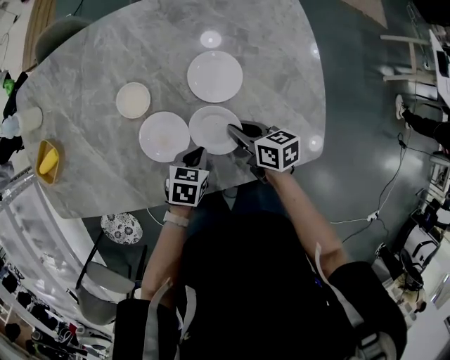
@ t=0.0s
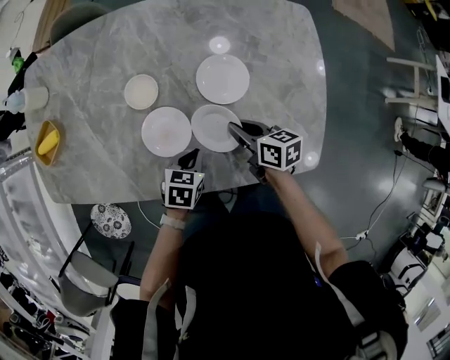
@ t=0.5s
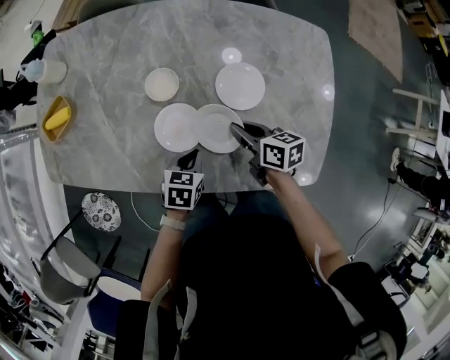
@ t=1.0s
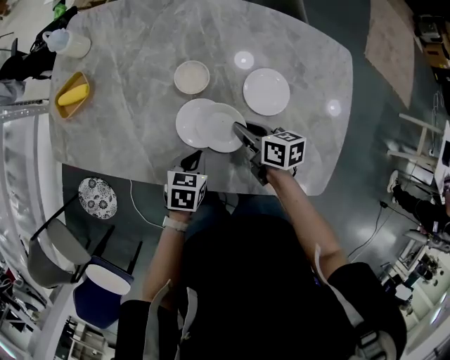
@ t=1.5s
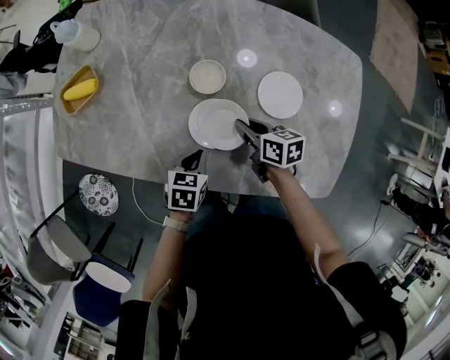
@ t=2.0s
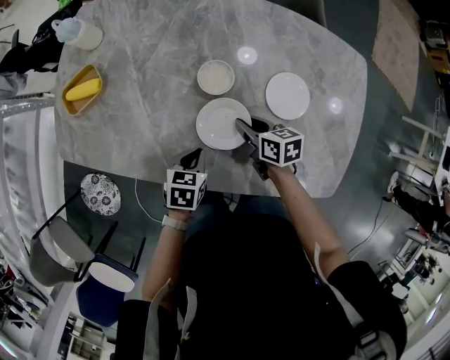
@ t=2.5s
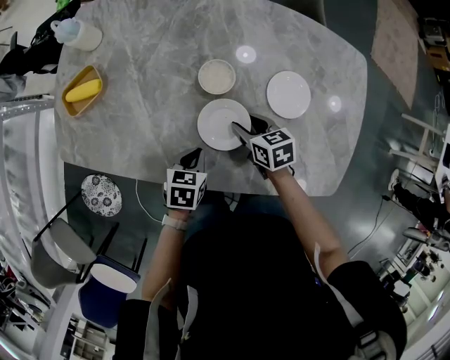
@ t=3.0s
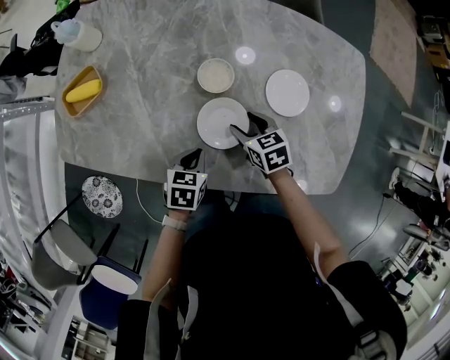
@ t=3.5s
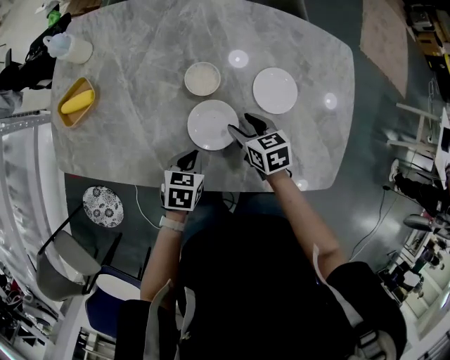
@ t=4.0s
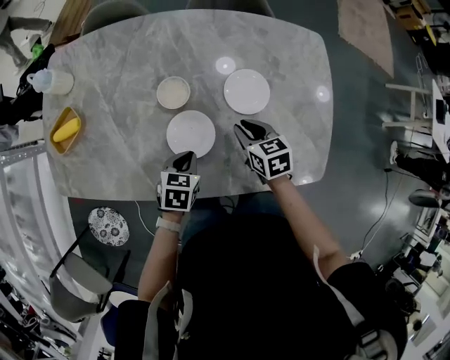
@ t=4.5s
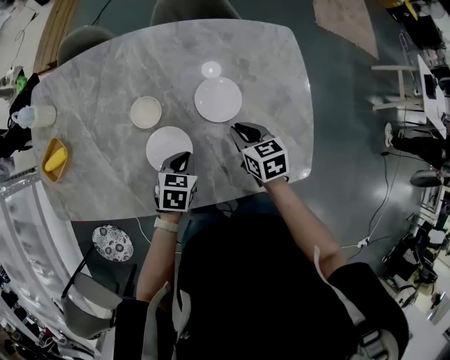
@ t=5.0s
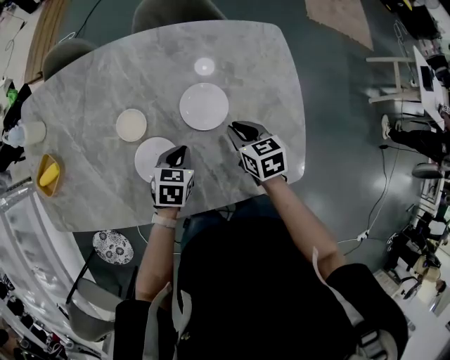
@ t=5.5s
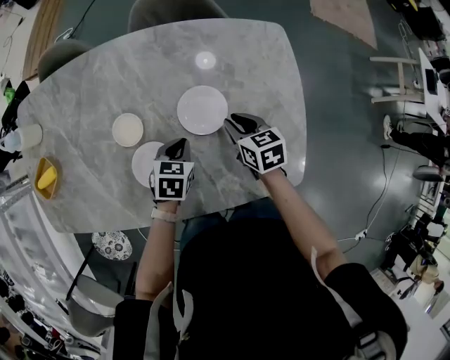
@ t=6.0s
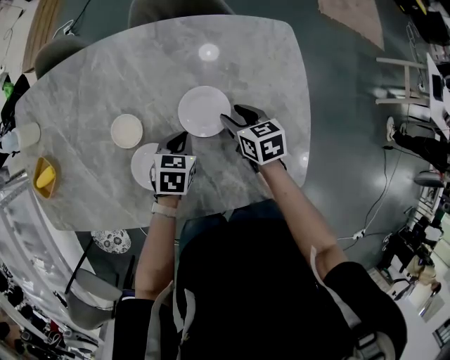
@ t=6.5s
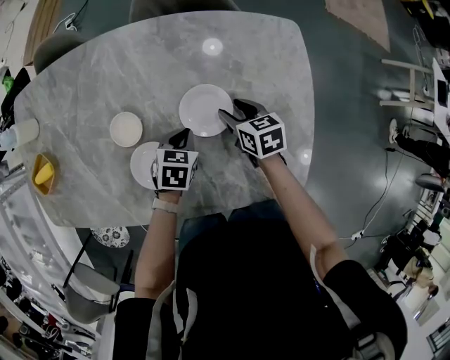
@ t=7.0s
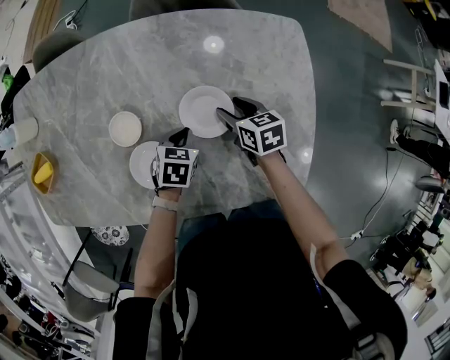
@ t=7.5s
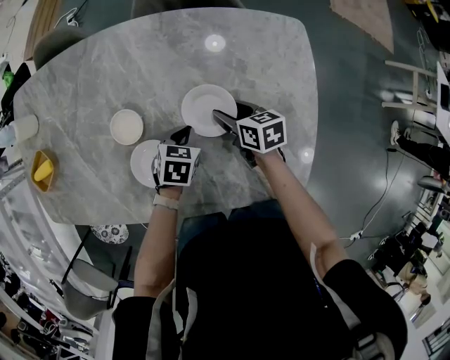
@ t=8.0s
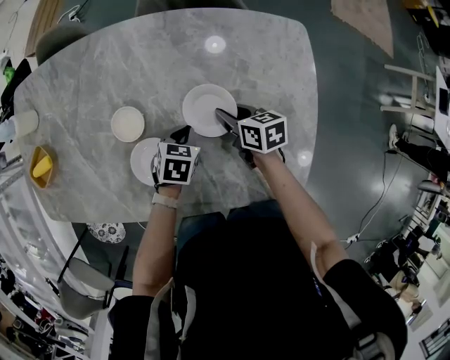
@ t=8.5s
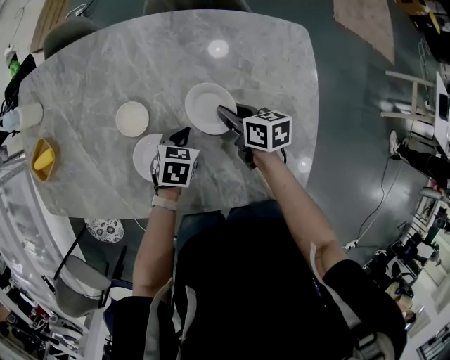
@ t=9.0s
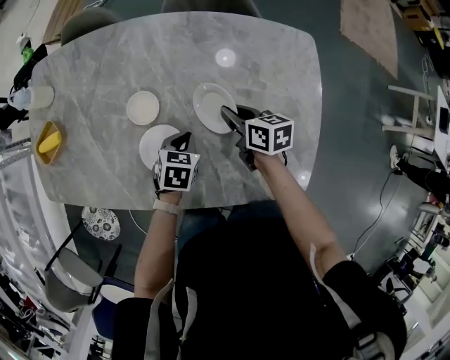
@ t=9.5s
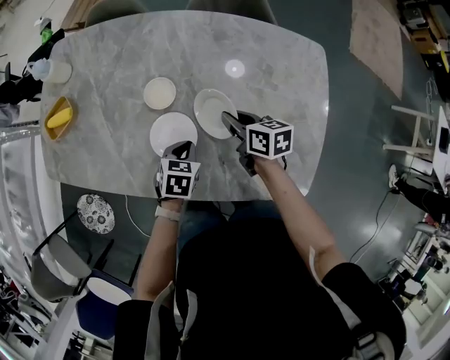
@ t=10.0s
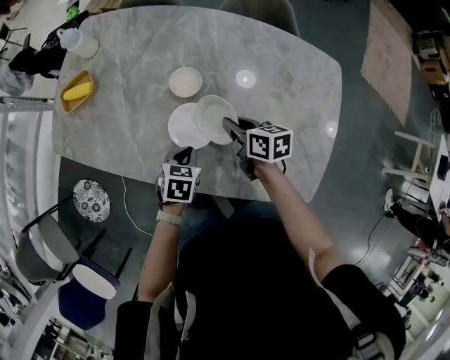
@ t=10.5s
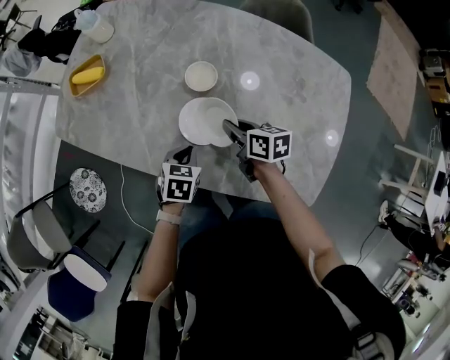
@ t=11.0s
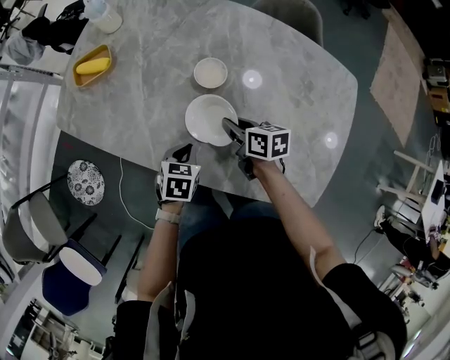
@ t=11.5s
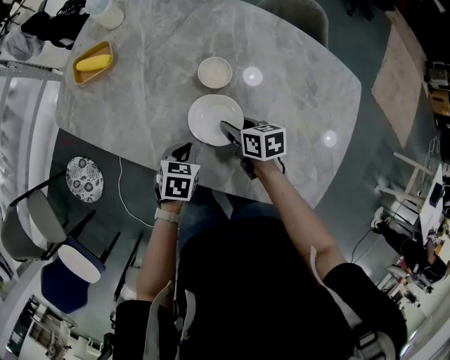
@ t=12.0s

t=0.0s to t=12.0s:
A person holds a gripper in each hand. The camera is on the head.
t=0.0s to t=2.0s: The right gripper heads to the left and forward, covering about 15 cm. The left gripper travels to the left by roughly 15 cm, and turns by roughly 20 degrees.
t=2.0s to t=4.0s: The right gripper changes its angle by some 20 degrees, and opens up.
t=4.0s to t=6.0s: The left gripper shifts approximately 20 cm to the right and forward. Meanwhile the right gripper shifts approximately 20 cm to the right, and closes its fingers.
t=6.0s to t=8.0s: The left gripper moves some 5 cm. Meanwhile the right gripper heads downward, covering roughly 5 cm, and opens its fingers.
t=8.0s to t=10.0s: The left gripper moves backward and to the left, some 15 cm. The right gripper moves to the left and upward, approximately 10 cm, and closes its fingers.
t=10.0s to t=12.0s: Both grippers travel together to the left, about 15 cm. The right gripper turns by some 20 degrees, and opens.

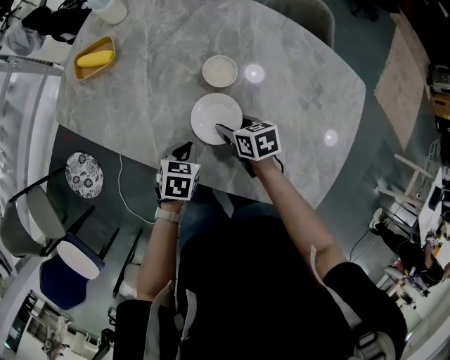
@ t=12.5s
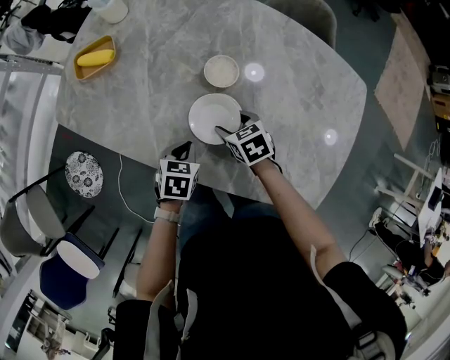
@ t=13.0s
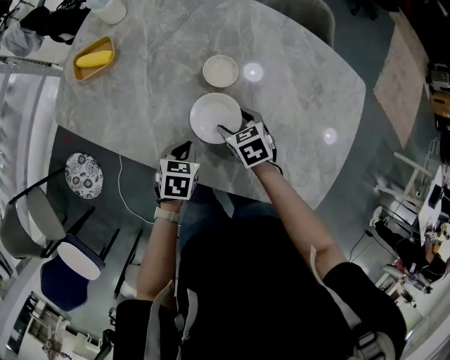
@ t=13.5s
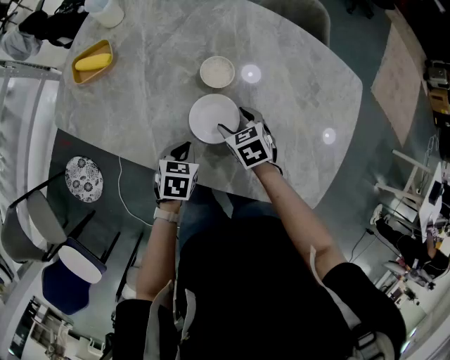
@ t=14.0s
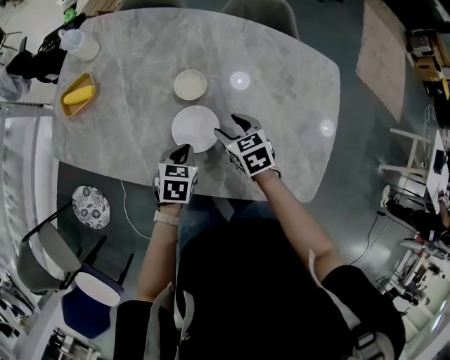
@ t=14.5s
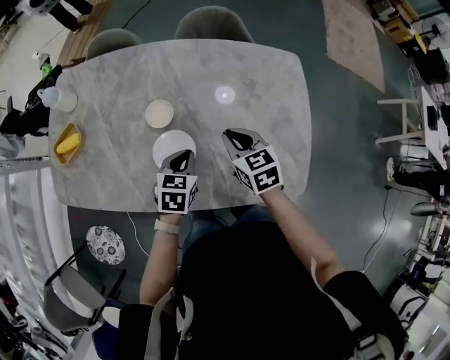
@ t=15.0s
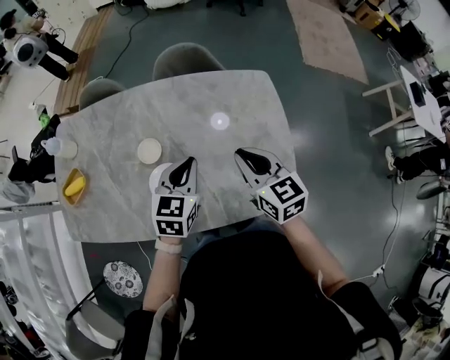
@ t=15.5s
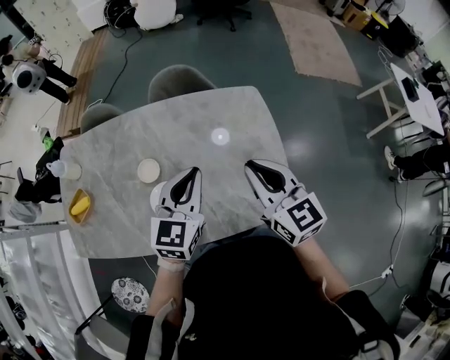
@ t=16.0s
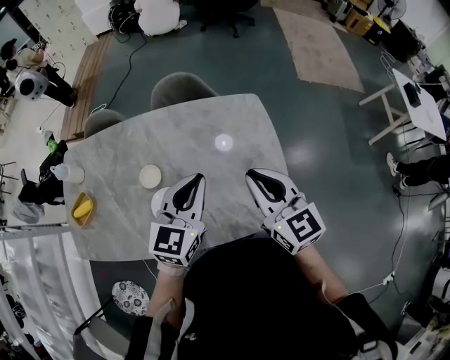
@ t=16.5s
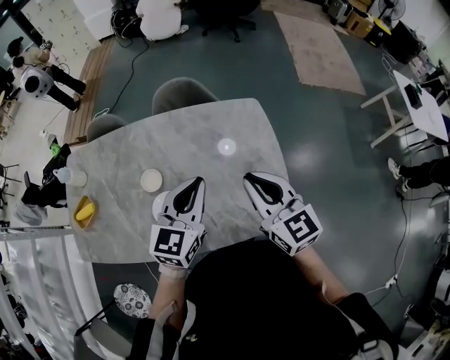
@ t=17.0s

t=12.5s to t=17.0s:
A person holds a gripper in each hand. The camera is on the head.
t=12.5s to t=14.5s: The right gripper moves upward and to the right, approximately 10 cm, and swivels approximately 20 degrees; the left gripper shifts by roughly 5 cm.
t=14.5s to t=17.0s: Both grippers travel together upward and to the right, about 40 cm. The right gripper tips its fingers upward by about 40 degrees, and closes up. Meanwhile the left gripper points its fingers approximately 40 degrees further upward.

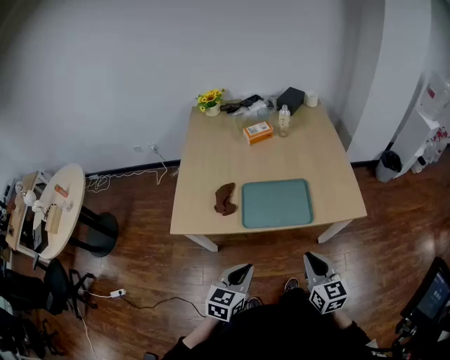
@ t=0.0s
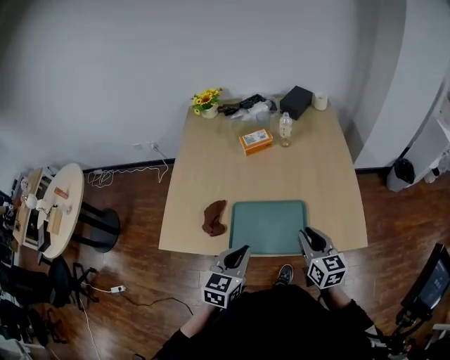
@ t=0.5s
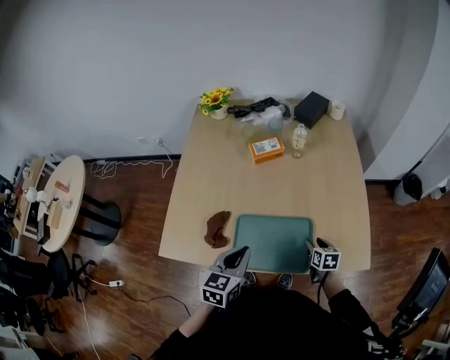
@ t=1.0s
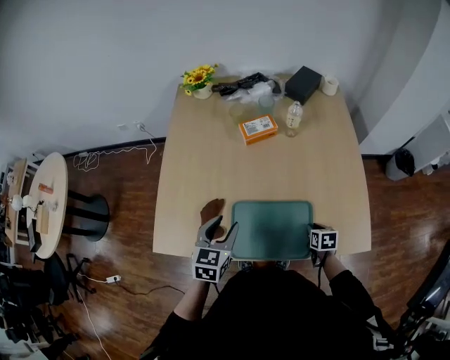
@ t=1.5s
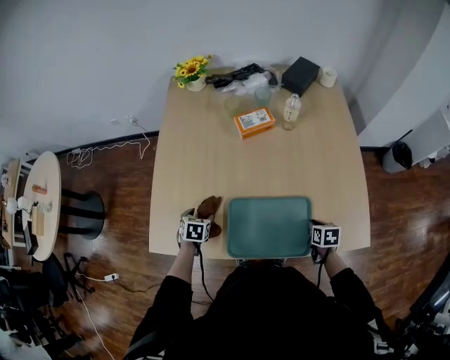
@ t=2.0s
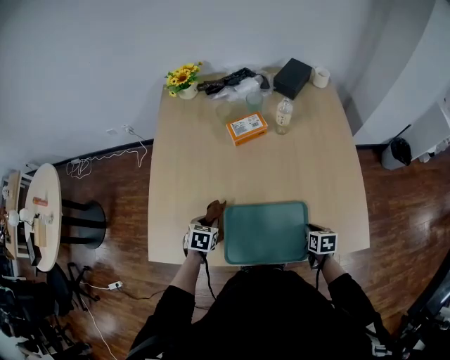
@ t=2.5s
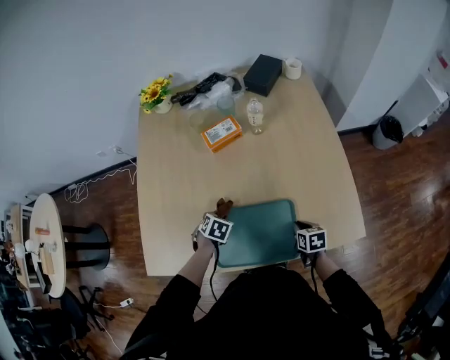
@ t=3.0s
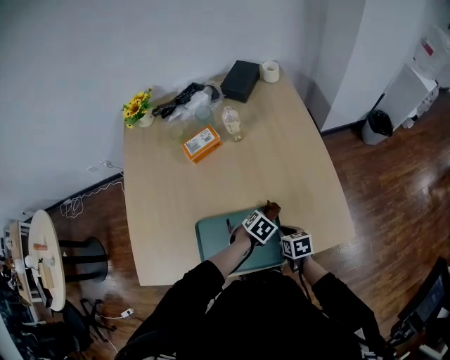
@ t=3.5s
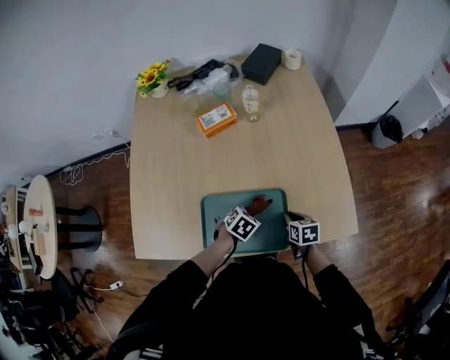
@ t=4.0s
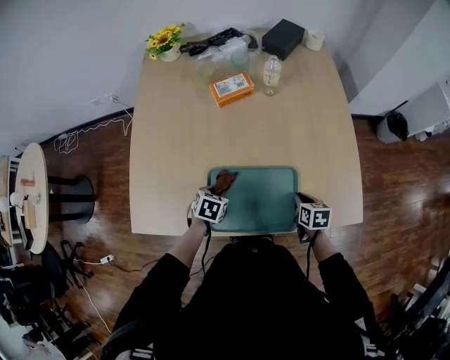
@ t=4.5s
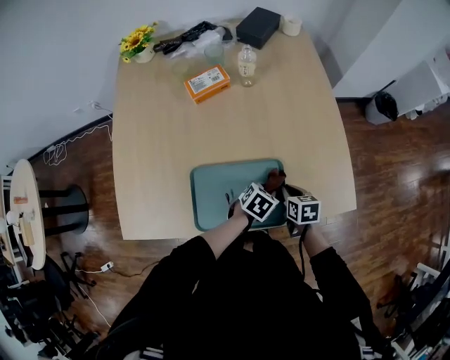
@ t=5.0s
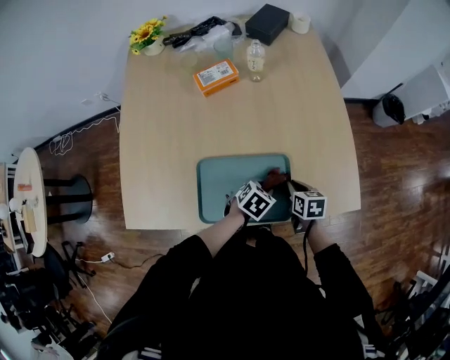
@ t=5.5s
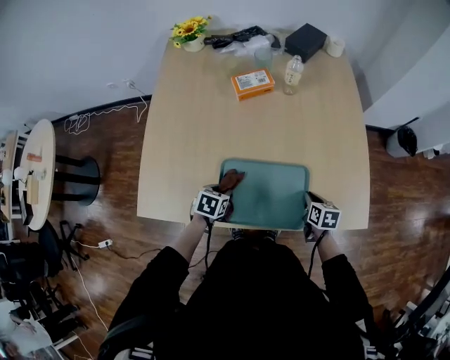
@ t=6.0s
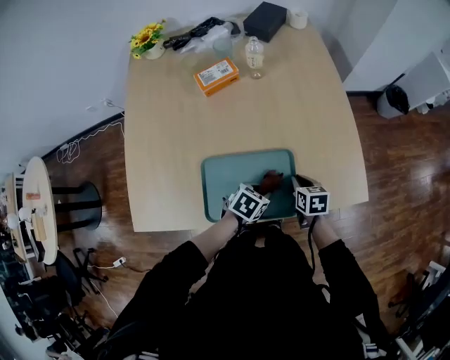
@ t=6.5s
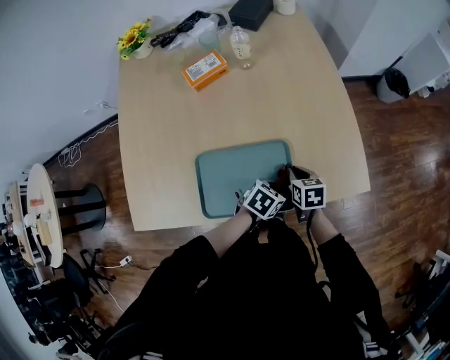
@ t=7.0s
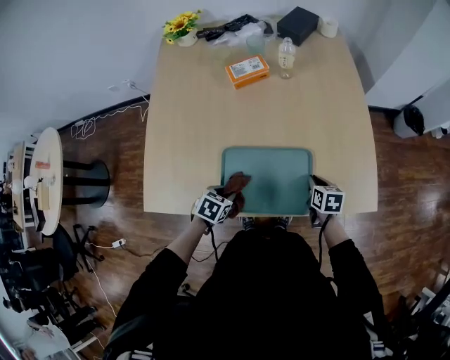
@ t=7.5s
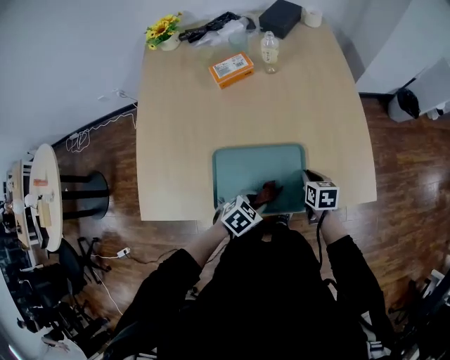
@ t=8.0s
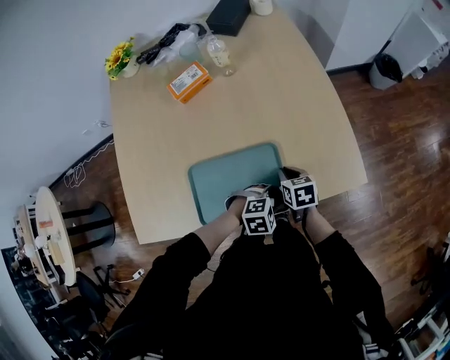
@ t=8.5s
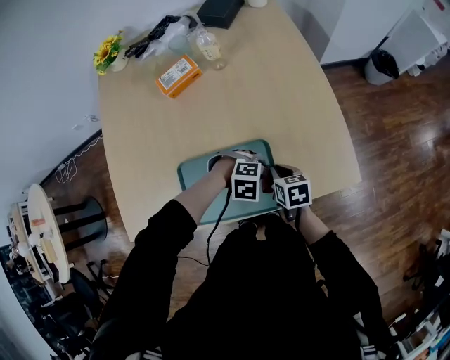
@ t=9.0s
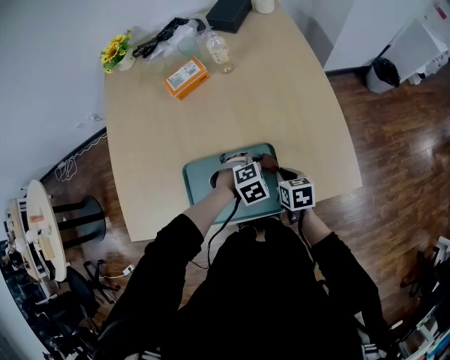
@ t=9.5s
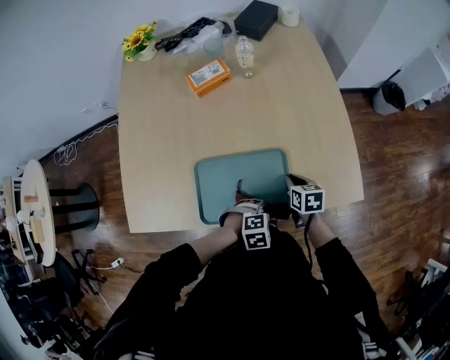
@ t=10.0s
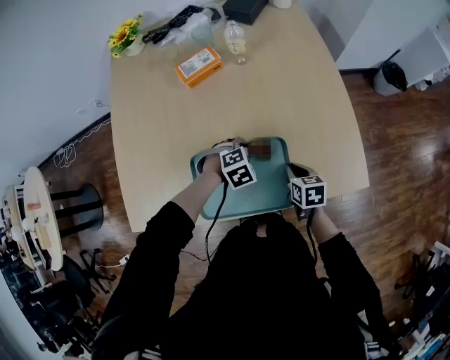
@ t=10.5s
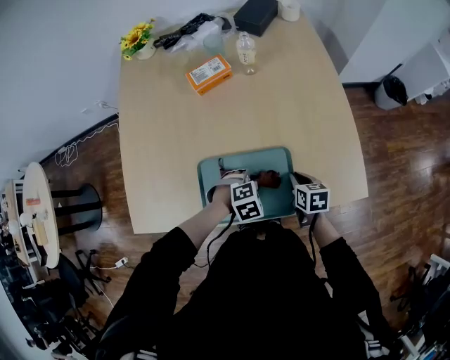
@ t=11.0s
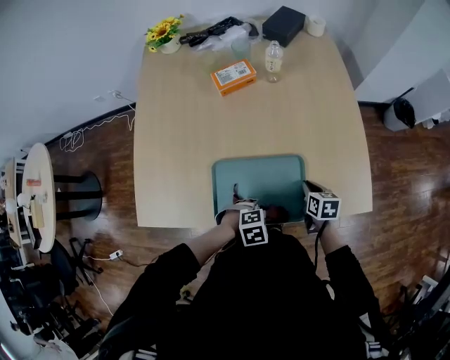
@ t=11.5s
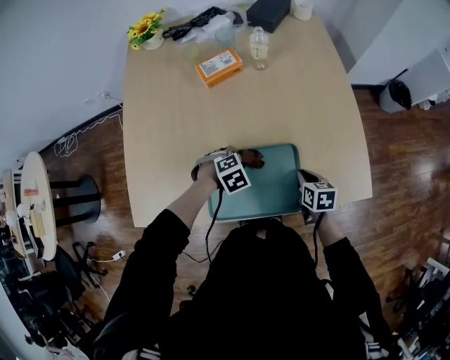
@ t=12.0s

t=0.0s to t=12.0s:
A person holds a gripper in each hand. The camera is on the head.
t=0.0s to t=2.0s: Both grippers travel together forward and downward, about 40 cm. The left gripper points its fingers some 30 degrees further downward, and opens its fingers; the right gripper tilts its fingers approximately 40 degrees downward, and opens, then closes once more.
t=2.0s to t=4.0s: The left gripper changes place by approximately 35 cm, swivels some 40 degrees, and closes its fingers.
t=4.0s to t=6.0s: The left gripper goes left and right, about 25 cm each way, reversing 2 times, and changes its angle by approximately 30 degrees.
t=6.0s to t=8.0s: The left gripper goes left and right, some 25 cm each way, reversing 2 times, and swivels about 40 degrees.
t=8.0s to t=10.0s: The left gripper changes its angle by roughly 40 degrees.
t=10.0s to t=12.0s: The left gripper changes place by about 20 cm.
